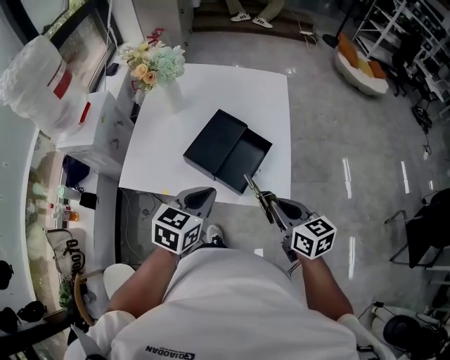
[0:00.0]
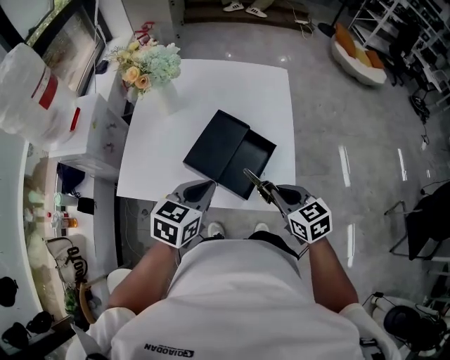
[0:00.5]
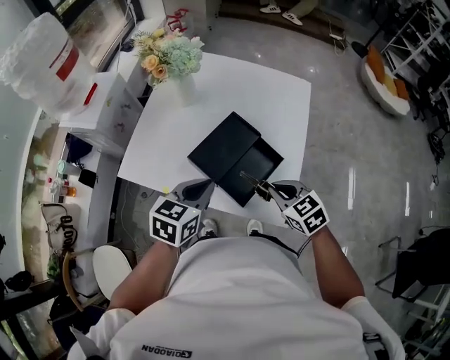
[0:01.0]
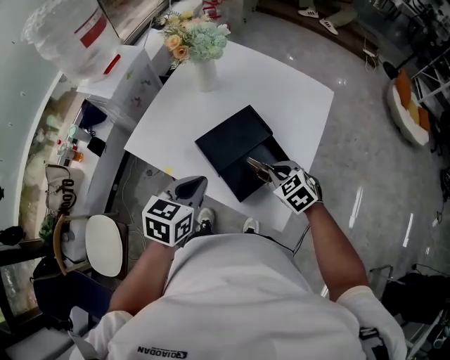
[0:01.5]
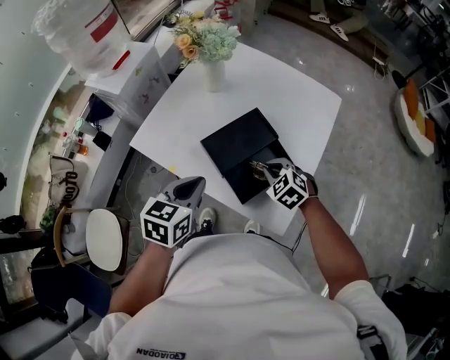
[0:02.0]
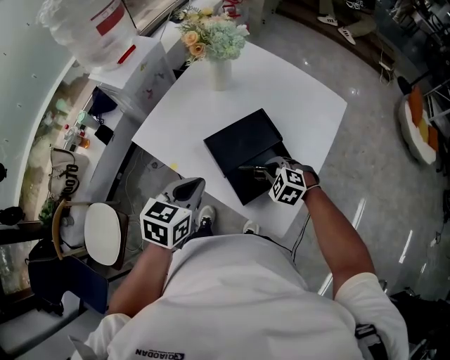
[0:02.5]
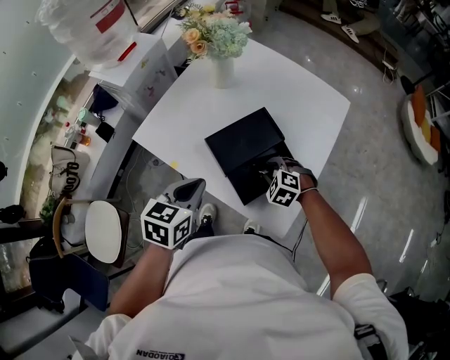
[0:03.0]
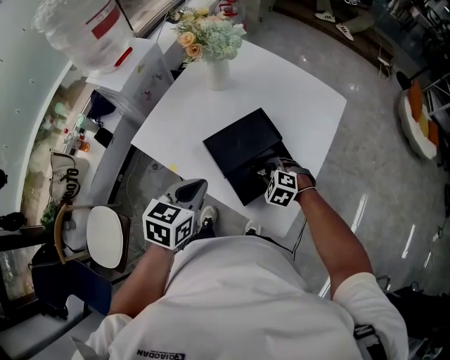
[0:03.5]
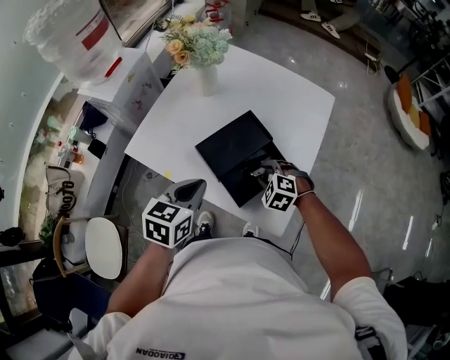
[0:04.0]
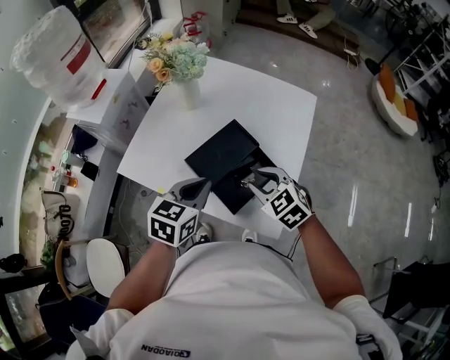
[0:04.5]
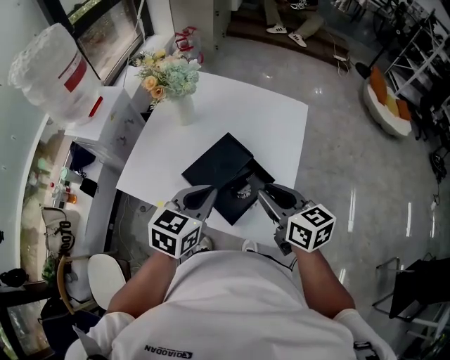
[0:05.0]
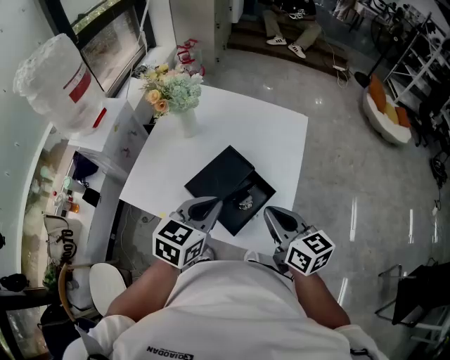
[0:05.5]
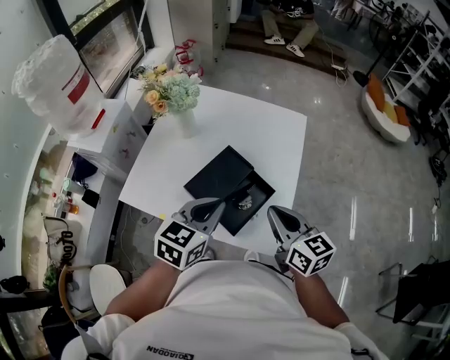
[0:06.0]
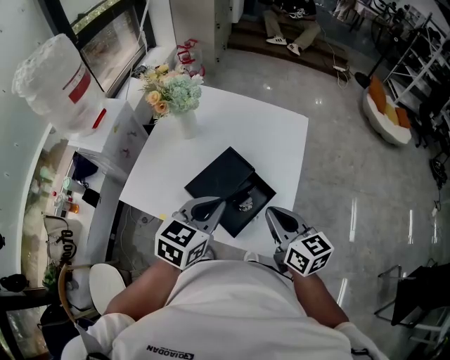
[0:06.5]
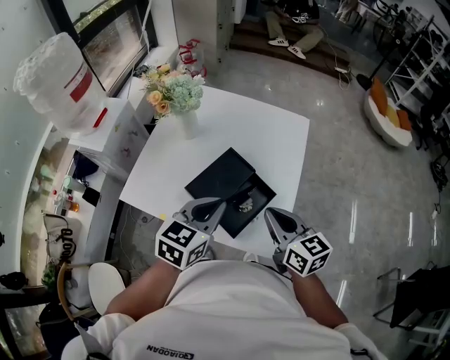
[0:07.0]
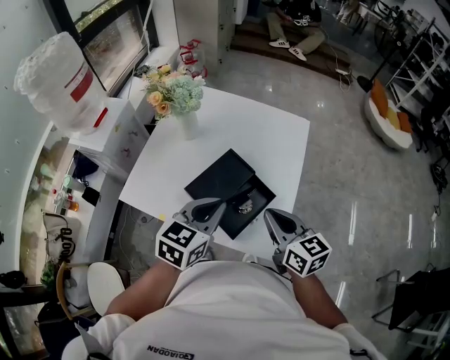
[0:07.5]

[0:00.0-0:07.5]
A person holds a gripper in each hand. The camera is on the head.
0:00.0 to 0:02.0: The left gripper ends up roughly 5 cm from where it was, and turns by roughly 30 degrees. The right gripper ends up approximately 25 cm from where it was, and rotates around the line of its fingers by about 60 degrees, counterclockwise from behind.
0:02.0 to 0:04.0: The right gripper opens up.
0:04.0 to 0:05.5: The left gripper heads upward and to the right, covering about 10 cm. Meanwhile the right gripper goes about 20 cm upward, twists roughly 70 degrees clockwise, seen from behind, and closes.
0:05.5 to 0:07.5: The grippers make only small movements.

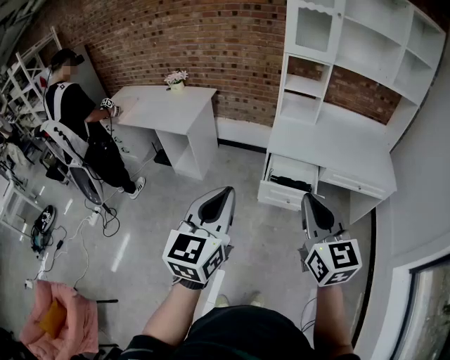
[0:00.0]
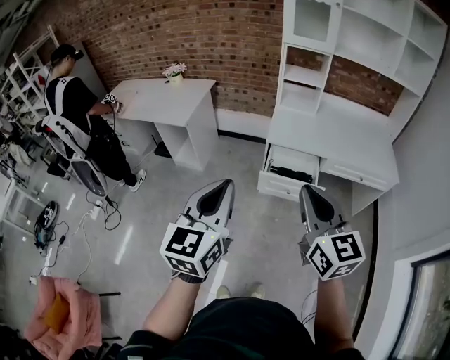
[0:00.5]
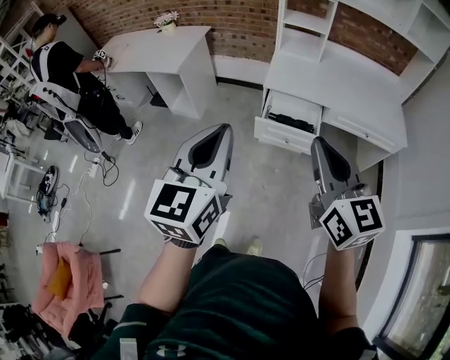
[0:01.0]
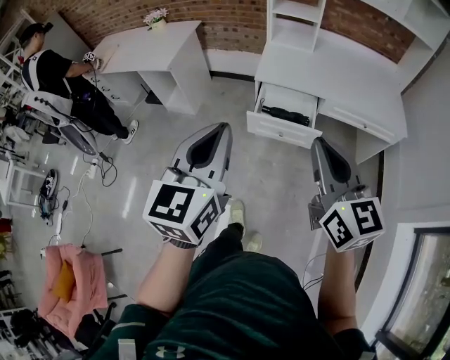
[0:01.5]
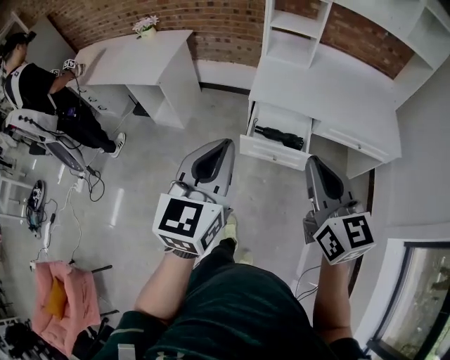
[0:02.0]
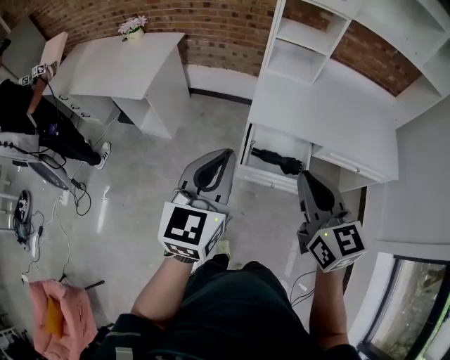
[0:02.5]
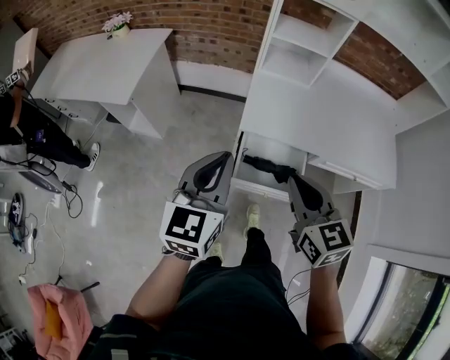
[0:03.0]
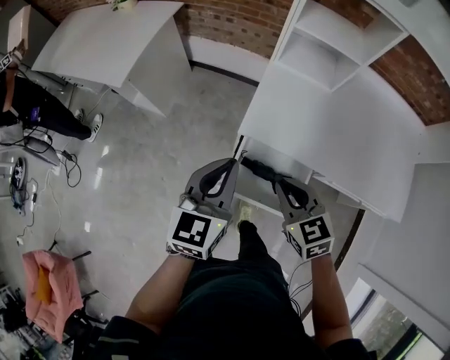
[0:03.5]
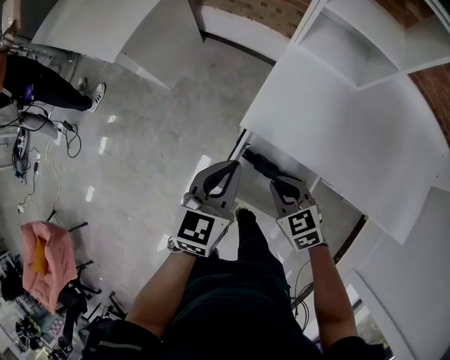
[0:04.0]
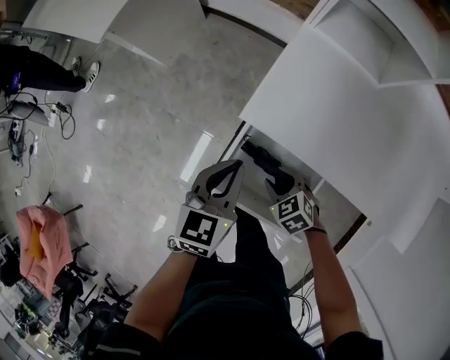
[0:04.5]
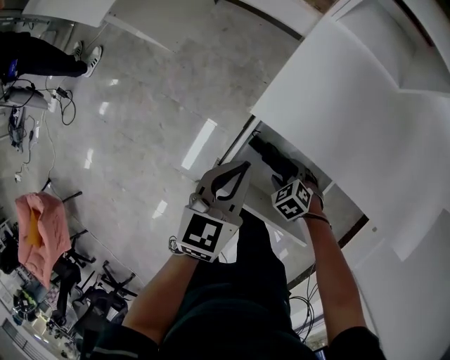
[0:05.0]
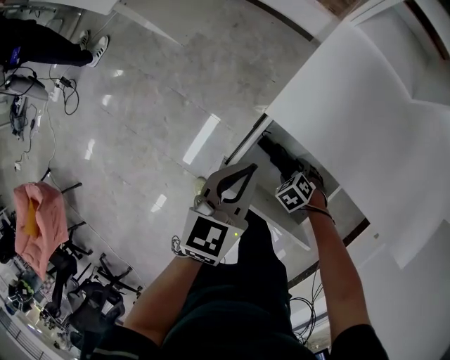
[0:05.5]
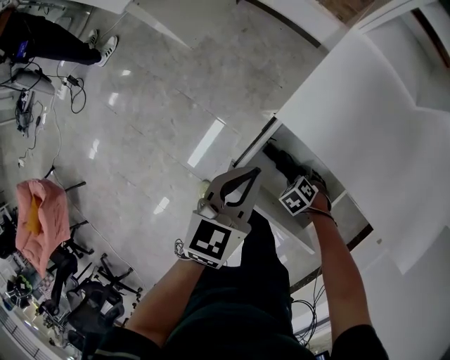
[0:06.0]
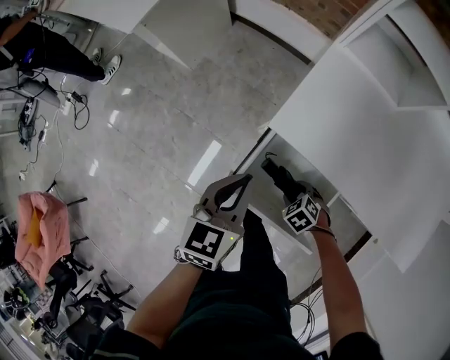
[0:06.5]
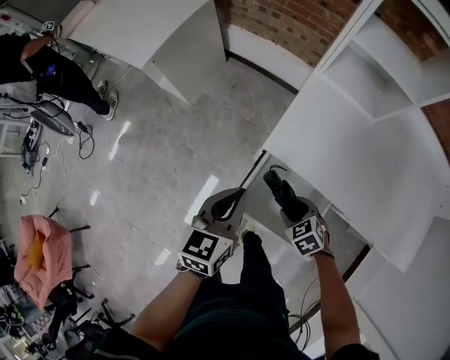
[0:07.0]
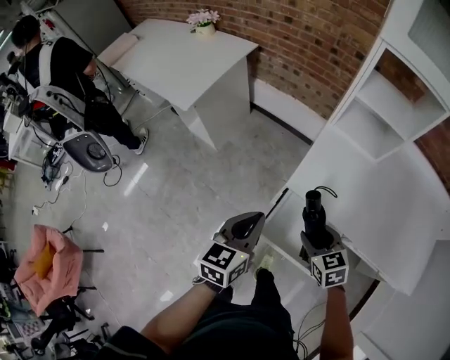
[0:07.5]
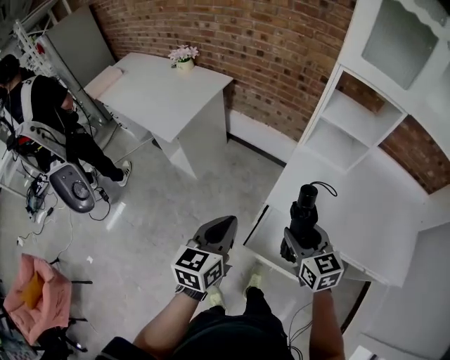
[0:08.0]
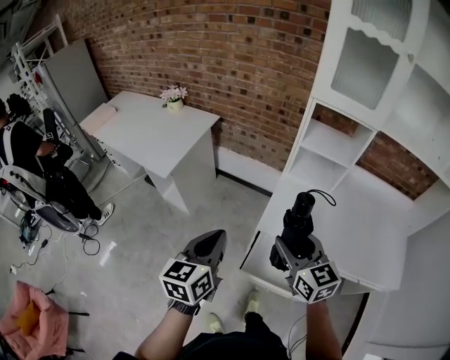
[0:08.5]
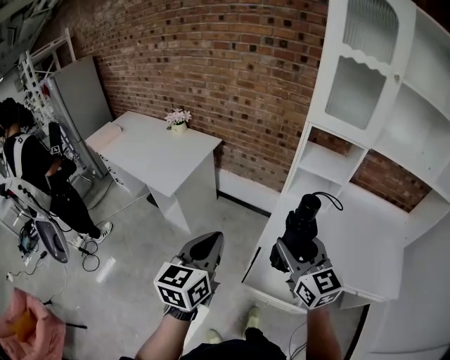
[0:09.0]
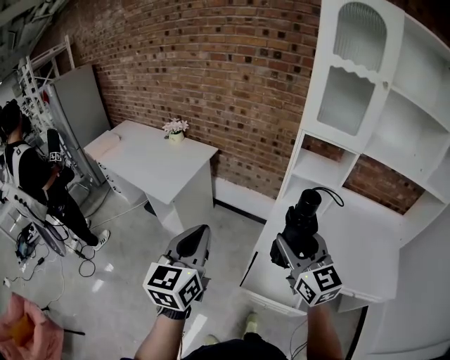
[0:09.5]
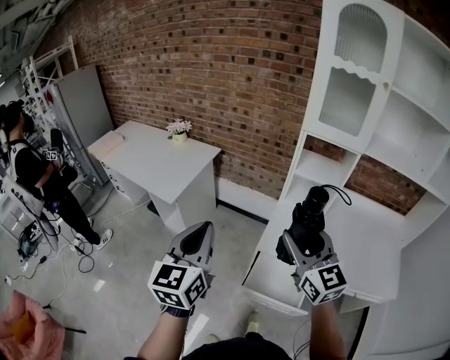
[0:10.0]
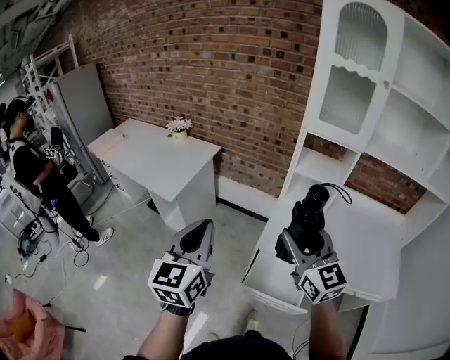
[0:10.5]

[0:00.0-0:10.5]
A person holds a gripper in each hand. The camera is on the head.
0:00.0 to 0:02.0: The two grippers go approximately 15 cm forward, to the right and downward.
0:02.0 to 0:04.0: The left gripper goes about 50 cm forward and downward, and turns by some 20 degrees. Meanwhile the right gripper heads downward and forward, covering about 50 cm, and angles its fingers downward, by roughly 40 degrees.
0:04.0 to 0:06.5: The left gripper travels downward by approximately 5 cm, while the right gripper is displaced downward by some 20 cm, points its fingers about 30 degrees further downward, and opens its fingers.
0:06.5 to 0:08.5: The left gripper moves upward, roughly 25 cm, while the right gripper goes roughly 50 cm upward, and angles its fingers upward, by about 60 degrees.
0:08.5 to 0:10.5: The two grippers go some 15 cm upward. The left gripper turns by some 20 degrees.

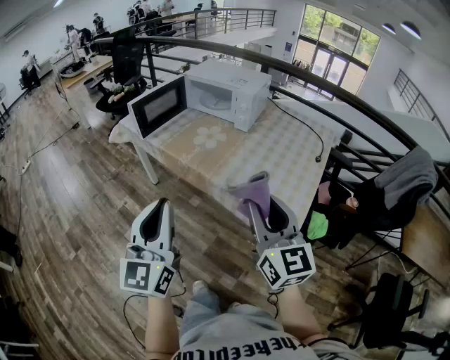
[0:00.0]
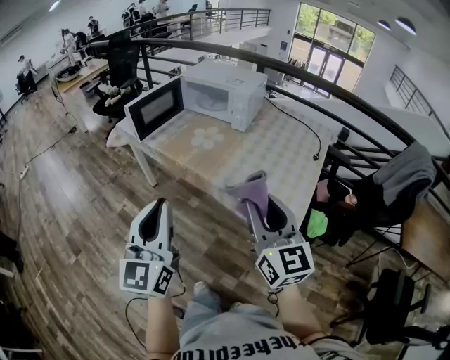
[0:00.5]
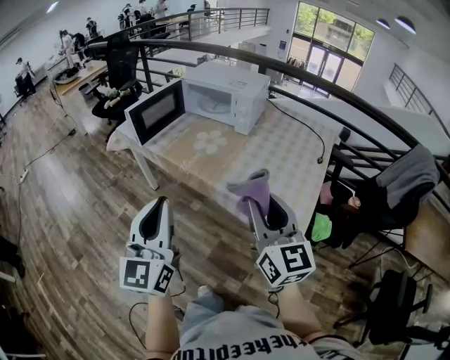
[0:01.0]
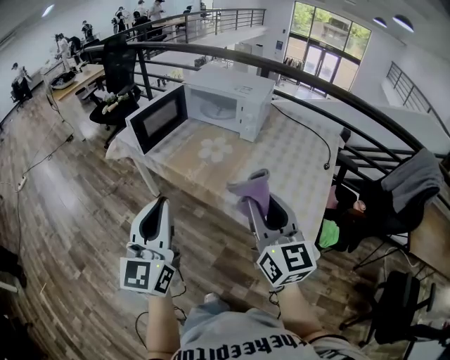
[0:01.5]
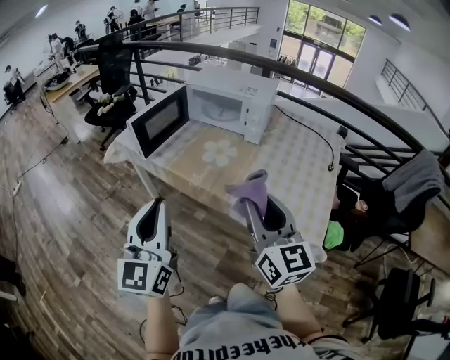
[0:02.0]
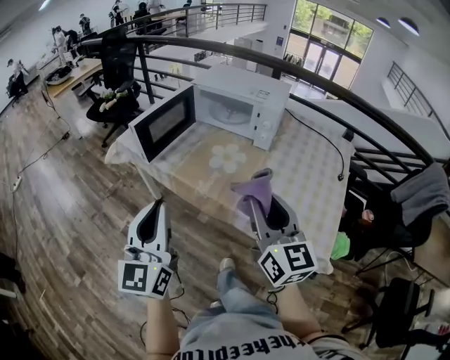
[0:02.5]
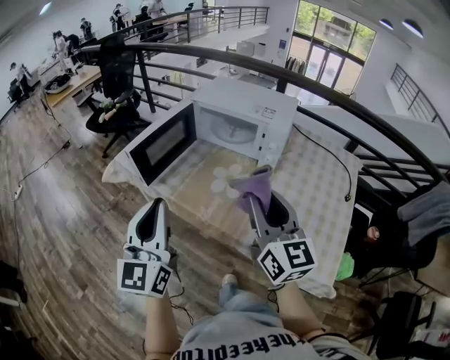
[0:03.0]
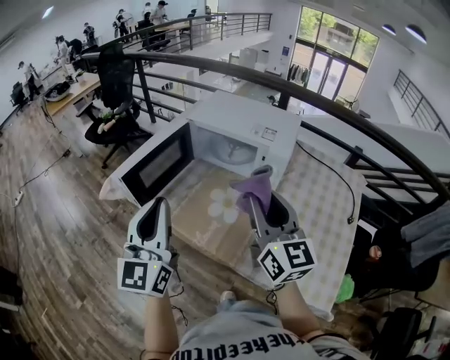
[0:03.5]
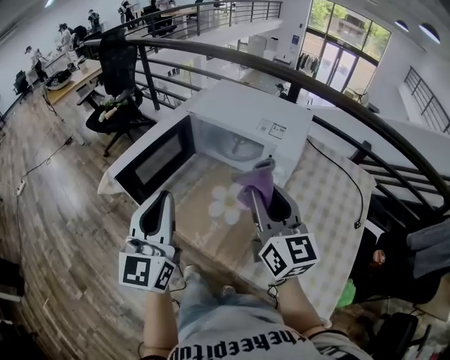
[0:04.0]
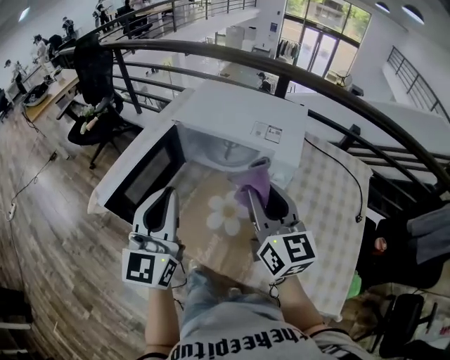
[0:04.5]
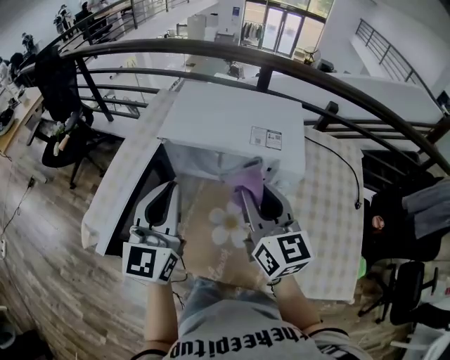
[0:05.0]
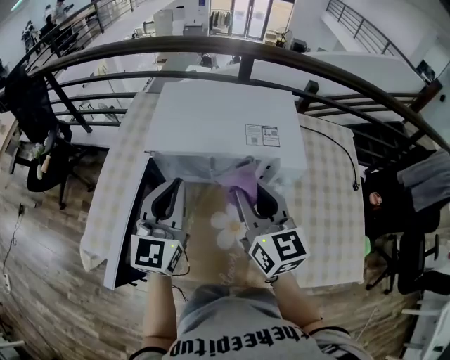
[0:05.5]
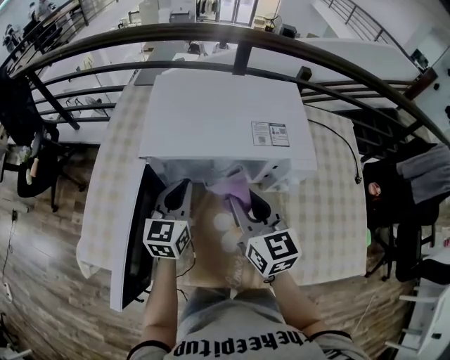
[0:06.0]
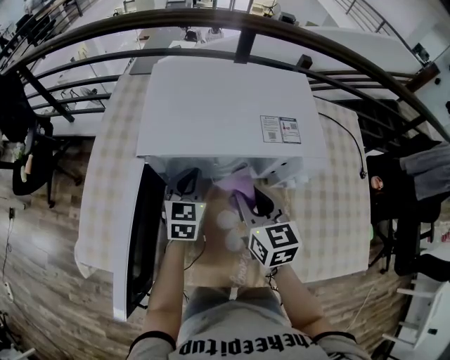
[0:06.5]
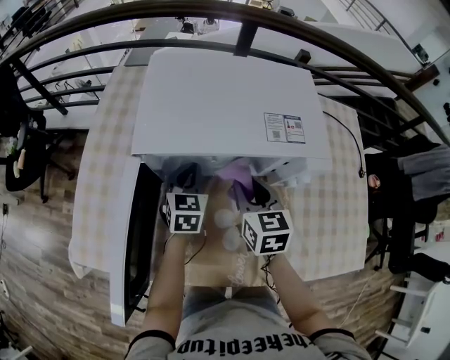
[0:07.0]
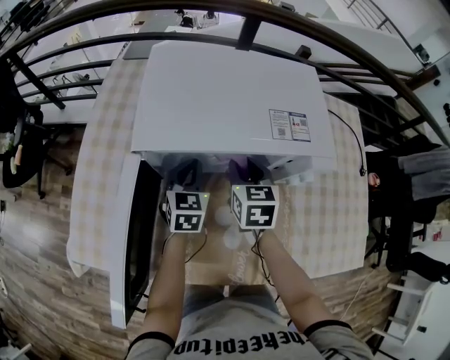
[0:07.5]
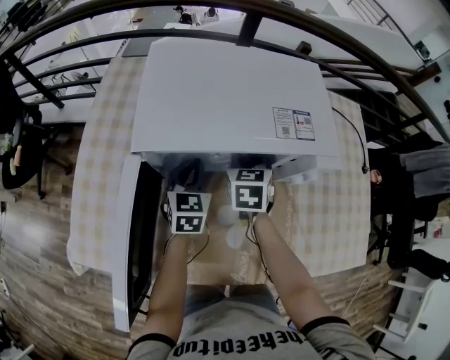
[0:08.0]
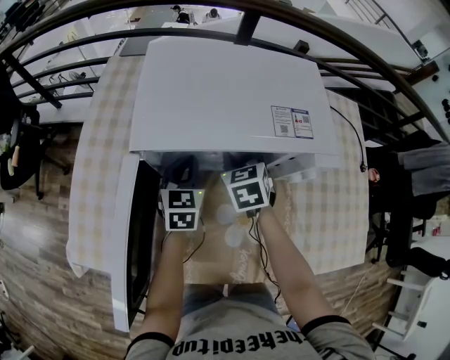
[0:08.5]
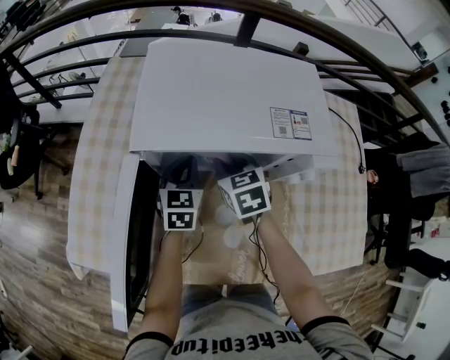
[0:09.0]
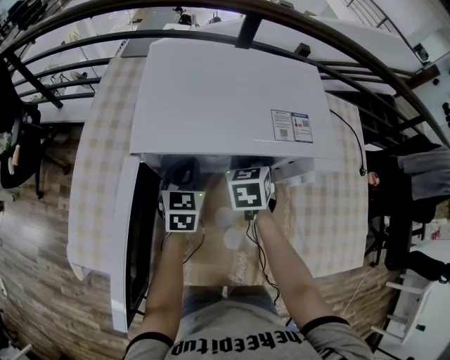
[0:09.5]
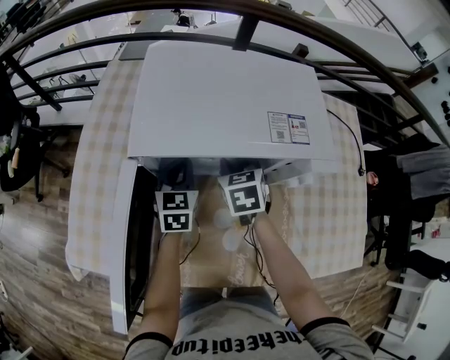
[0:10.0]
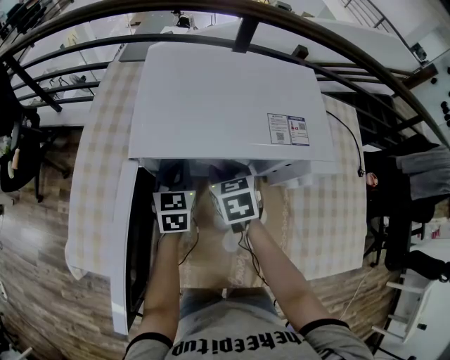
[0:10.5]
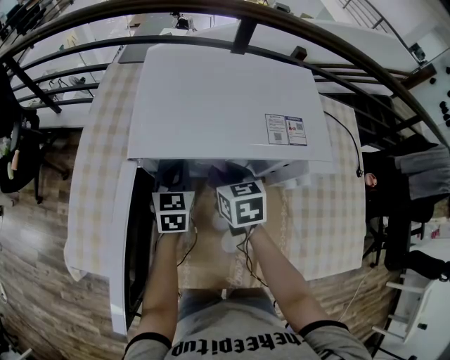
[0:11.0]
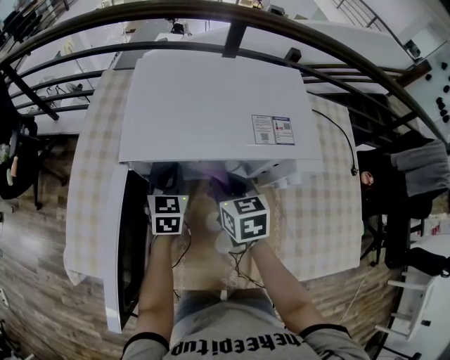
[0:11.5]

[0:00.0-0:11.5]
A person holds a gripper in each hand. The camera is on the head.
0:00.0 to 0:02.0: The two grippers go about 15 cm forward and to the left.
0:02.0 to 0:04.0: Both grippers travel together forward, approximately 30 cm.
0:04.0 to 0:06.0: The left gripper shifts by about 40 cm, and rotates approximately 40 degrees; the right gripper ends up some 25 cm from where it was, and rotates roughly 30 degrees.
0:06.0 to 0:07.5: The grippers both shift downward and forward by some 15 cm. The left gripper swivels about 20 degrees, while the right gripper rotates about 30 degrees.
0:09.5 to 0:11.5: The right gripper heads backward, covering some 5 cm, and turns by about 20 degrees.
